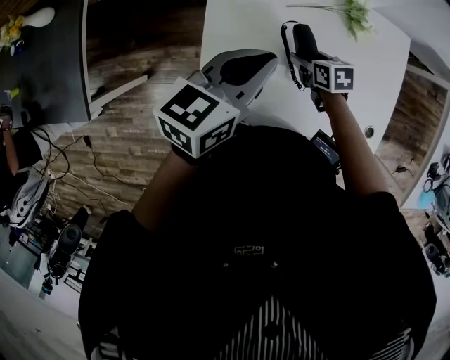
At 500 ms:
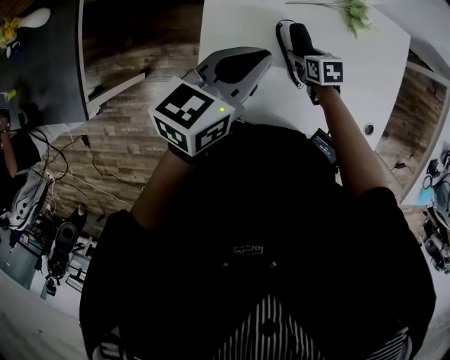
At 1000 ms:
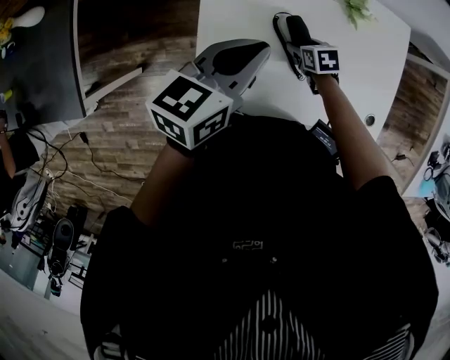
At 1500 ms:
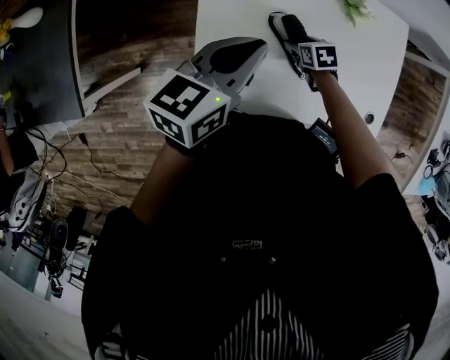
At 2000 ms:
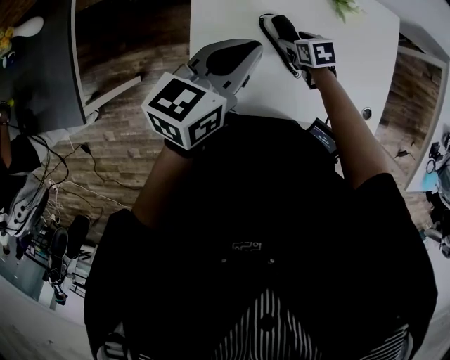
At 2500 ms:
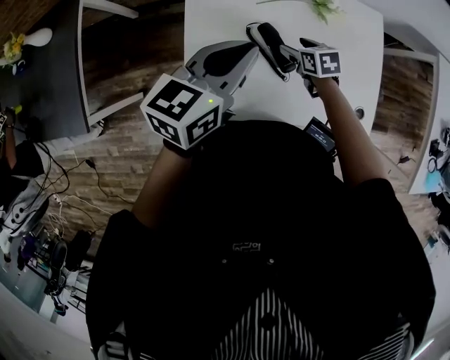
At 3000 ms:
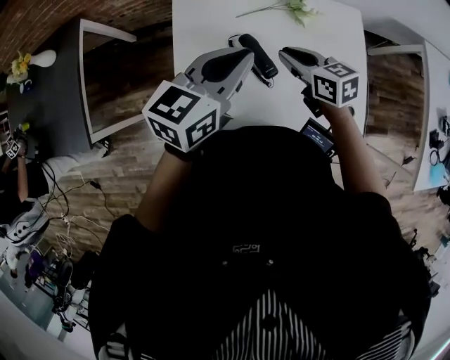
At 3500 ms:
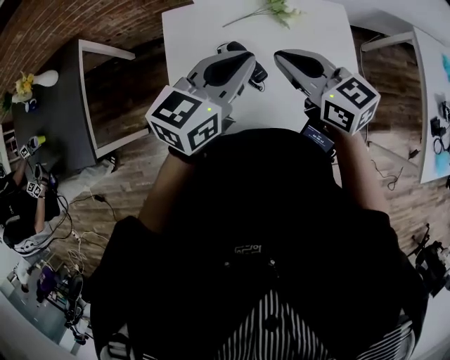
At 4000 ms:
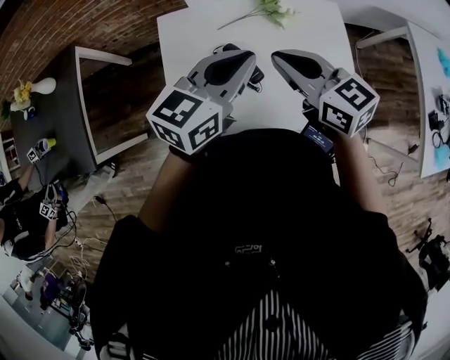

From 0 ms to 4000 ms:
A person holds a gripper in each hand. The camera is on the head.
From 2000 ms to 4000 ms: The left gripper moves to the right and upward, about 10 cm. Meanwhile the right gripper travels upward by about 30 cm, points its fingers roughly 40 degrees further upward, and closes its fingers.

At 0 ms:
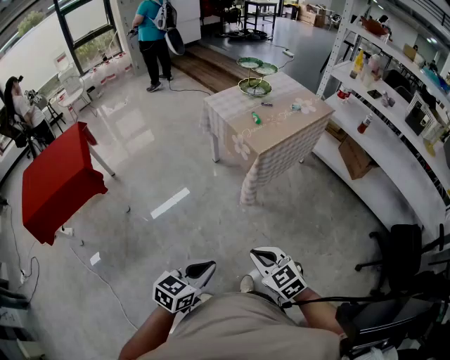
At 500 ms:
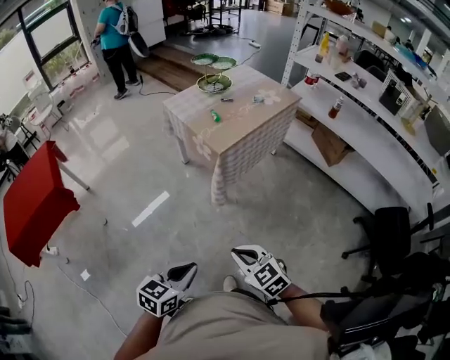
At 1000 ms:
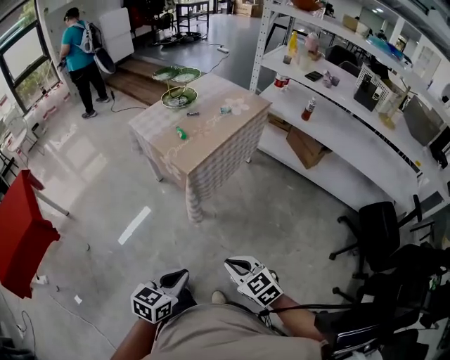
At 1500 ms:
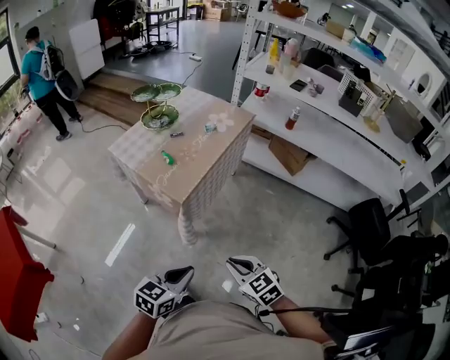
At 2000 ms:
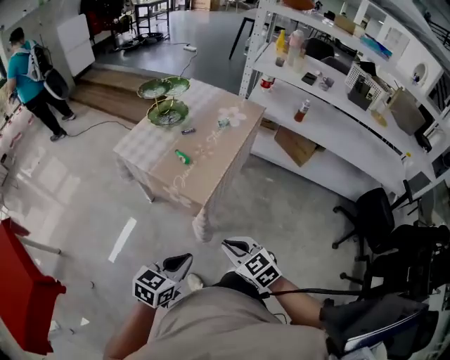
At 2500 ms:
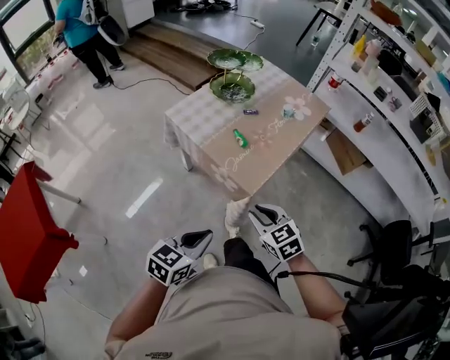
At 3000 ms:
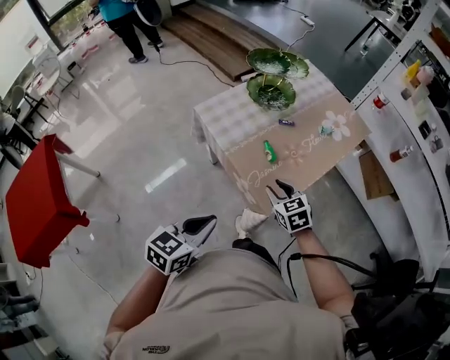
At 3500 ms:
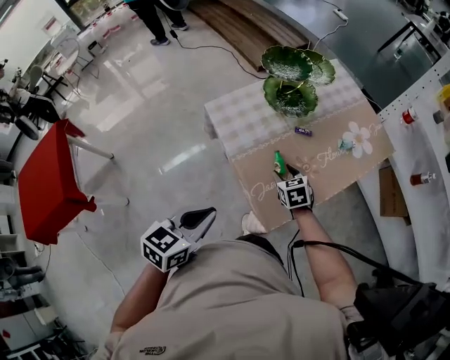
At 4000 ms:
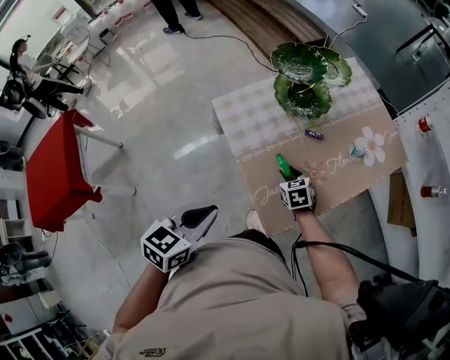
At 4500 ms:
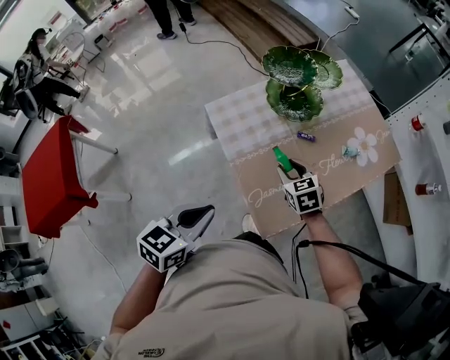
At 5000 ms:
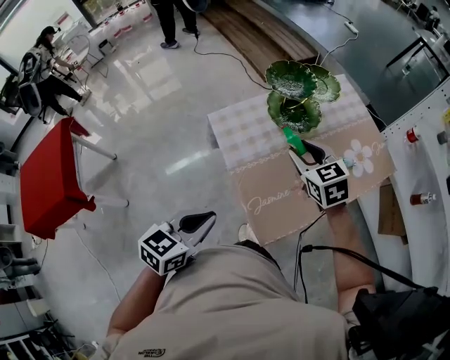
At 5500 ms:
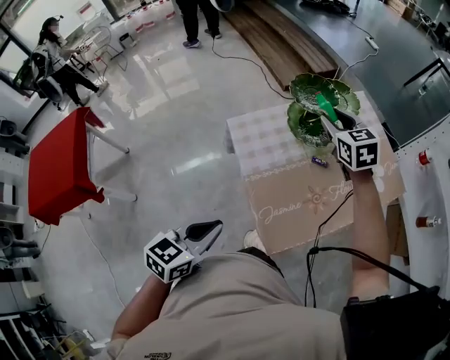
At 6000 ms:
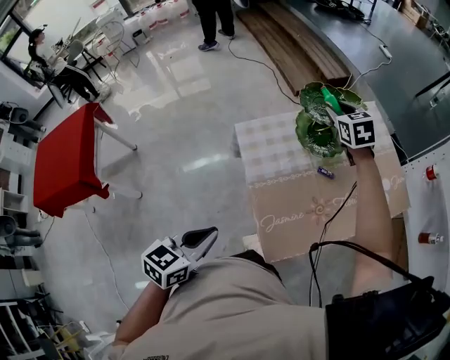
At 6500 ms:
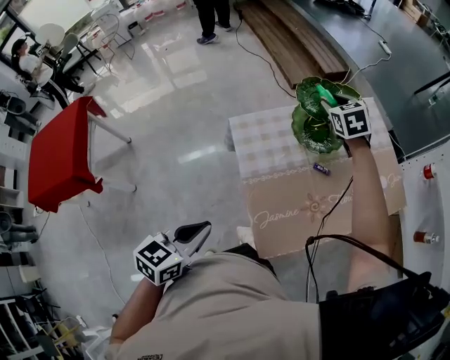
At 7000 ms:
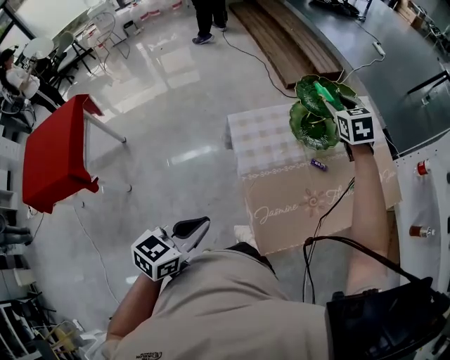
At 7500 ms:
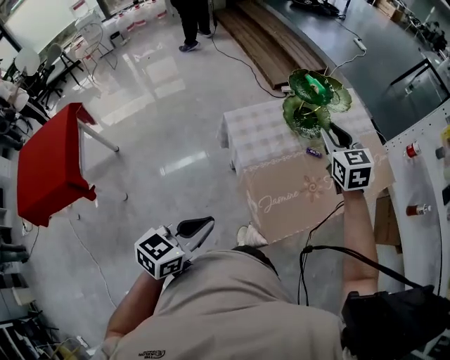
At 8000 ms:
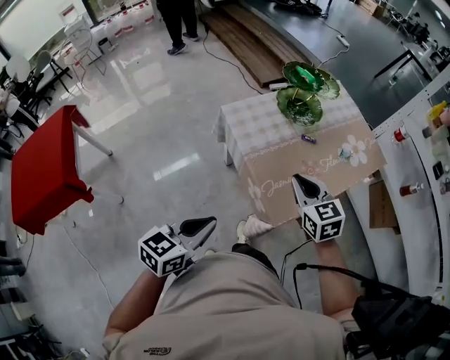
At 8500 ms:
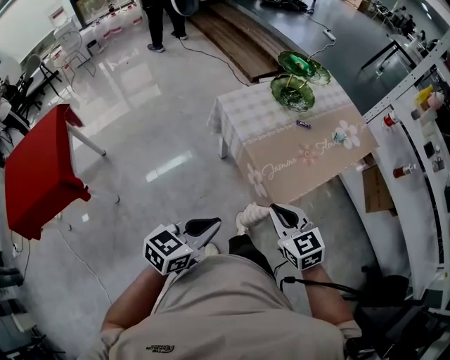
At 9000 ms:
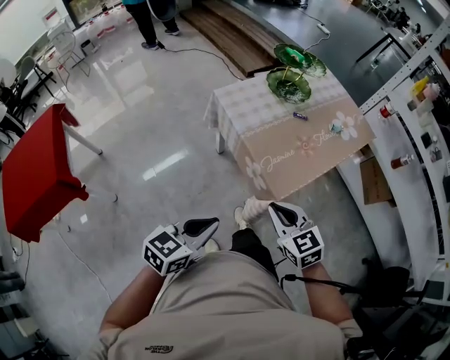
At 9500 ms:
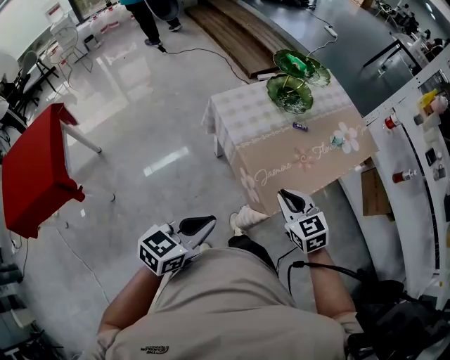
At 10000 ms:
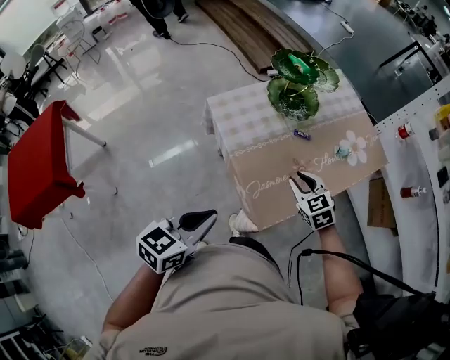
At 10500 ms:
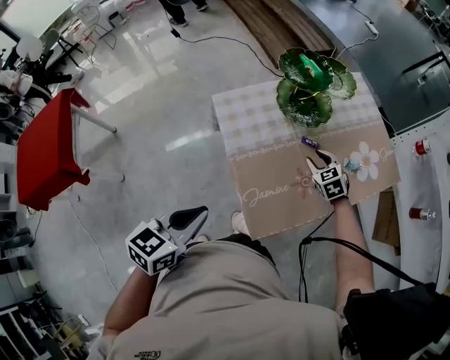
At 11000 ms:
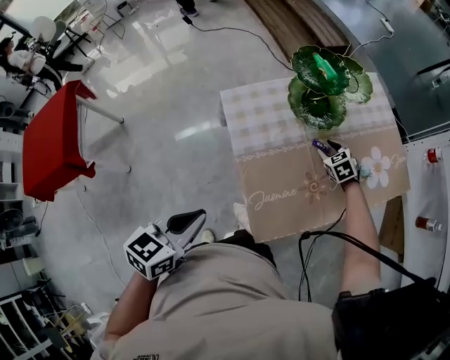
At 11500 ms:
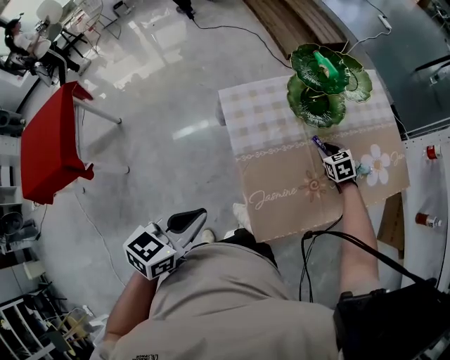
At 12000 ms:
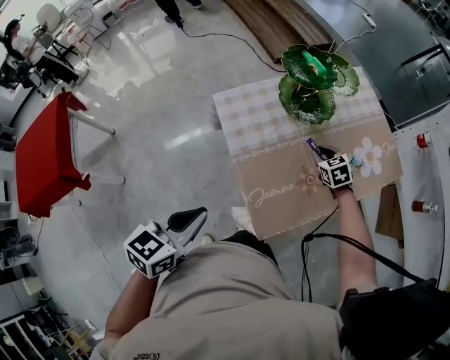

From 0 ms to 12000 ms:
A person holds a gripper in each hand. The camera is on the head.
From 0 ms to 2000 ms: The grippers both shift forward by roughly 35 cm. The right gripper rotates some 20 degrees, while the left gripper turns by roughly 20 degrees.
From 2000 ms to 4000 ms: The right gripper travels forward and downward by approximately 50 cm, and opens, while the left gripper is displaced forward by roughly 30 cm, and turns by approximately 30 degrees.
From 4000 ms to 6000 ms: The right gripper goes roughly 40 cm upward and forward, and rotates about 20 degrees.
From 6000 ms to 8000 ms: The left gripper heads backward, covering some 10 cm, while the right gripper is displaced backward by roughly 40 cm, and closes.
From 8000 ms to 10000 ms: The right gripper is displaced downward and to the right by about 15 cm, and goes backward and returns, about 20 cm each way. The left gripper travels forward and to the right by approximately 10 cm.
From 10000 ms to 12000 ms: The left gripper heads forward, covering about 5 cm. The right gripper moves forward and downward, roughly 20 cm.

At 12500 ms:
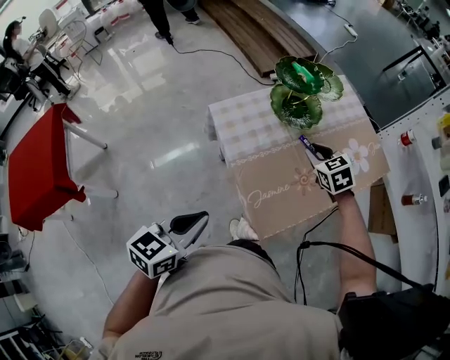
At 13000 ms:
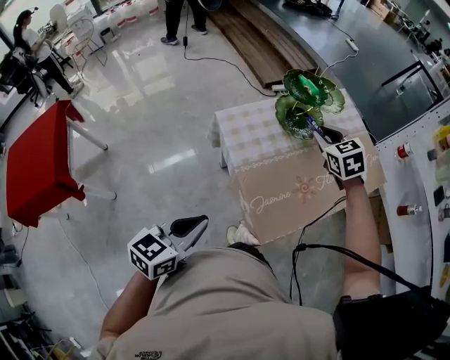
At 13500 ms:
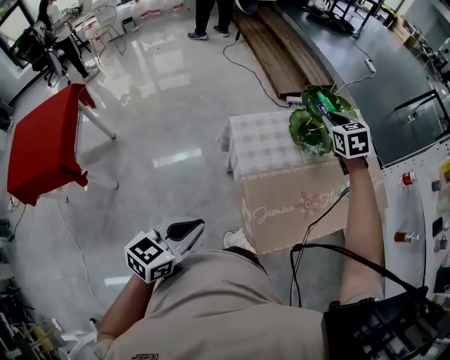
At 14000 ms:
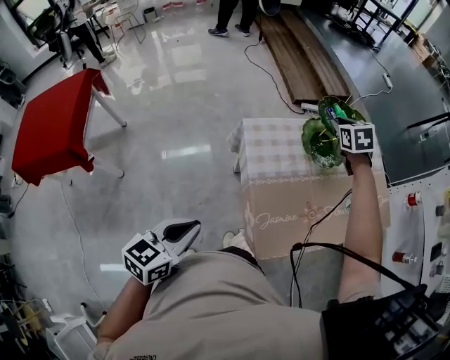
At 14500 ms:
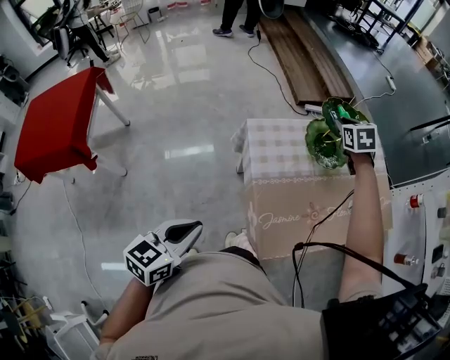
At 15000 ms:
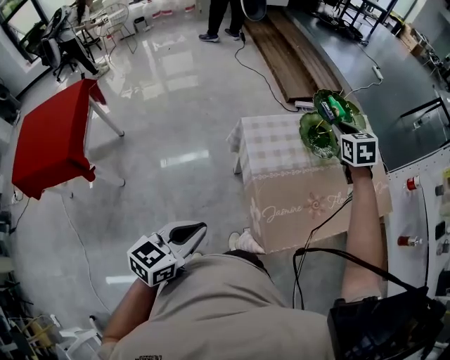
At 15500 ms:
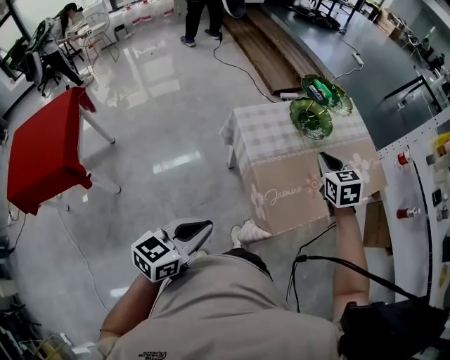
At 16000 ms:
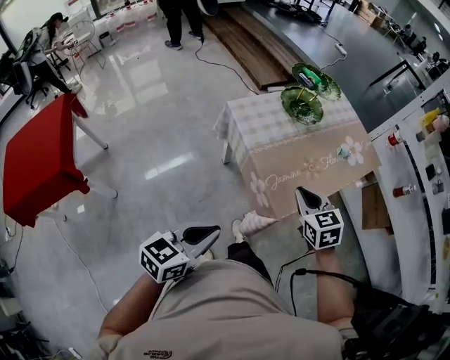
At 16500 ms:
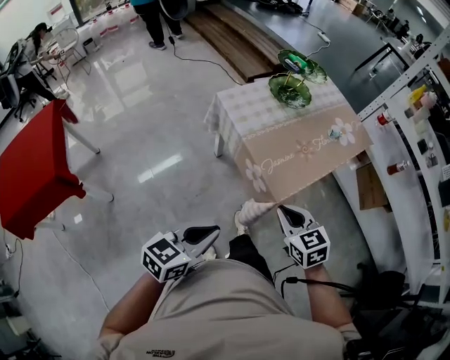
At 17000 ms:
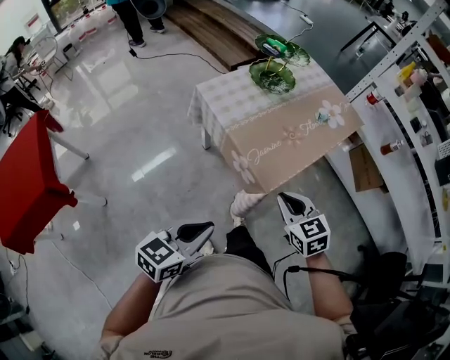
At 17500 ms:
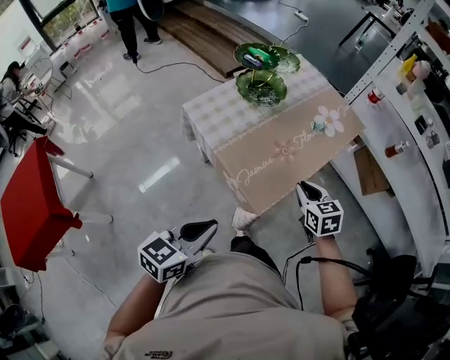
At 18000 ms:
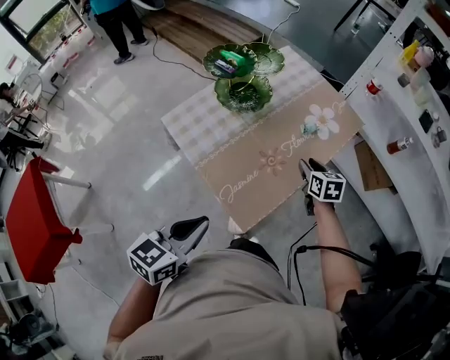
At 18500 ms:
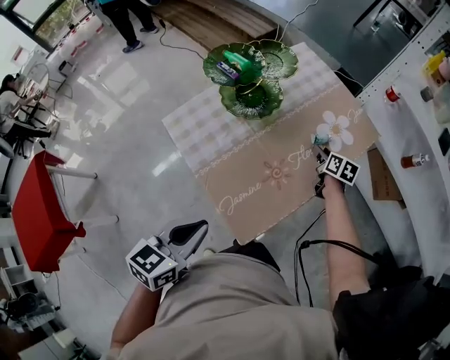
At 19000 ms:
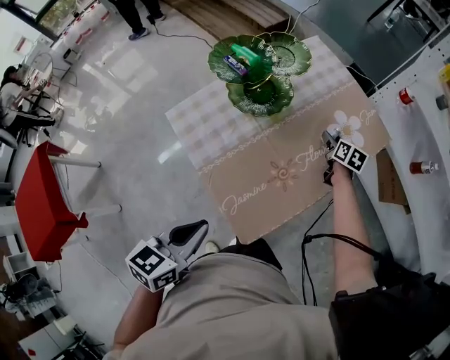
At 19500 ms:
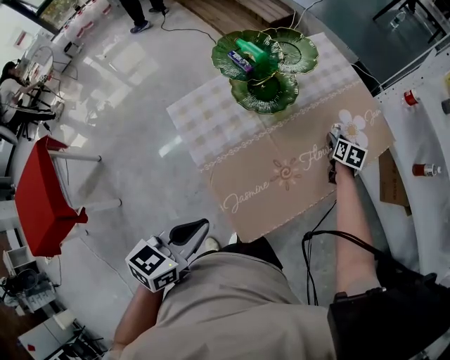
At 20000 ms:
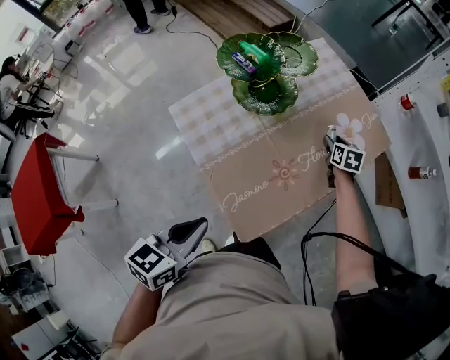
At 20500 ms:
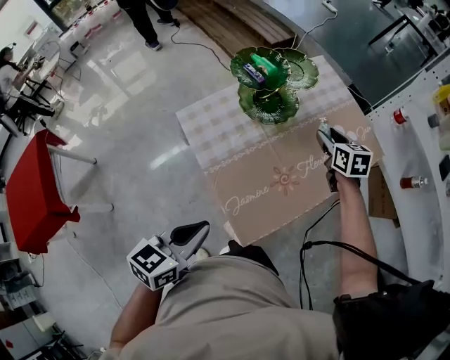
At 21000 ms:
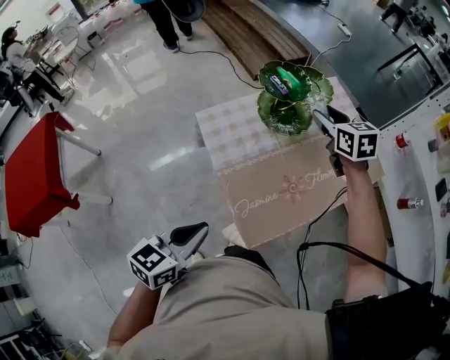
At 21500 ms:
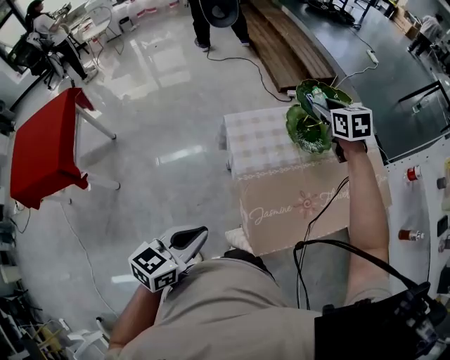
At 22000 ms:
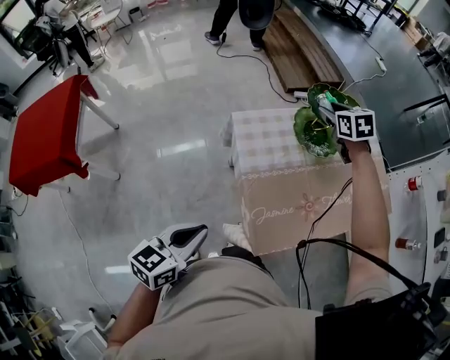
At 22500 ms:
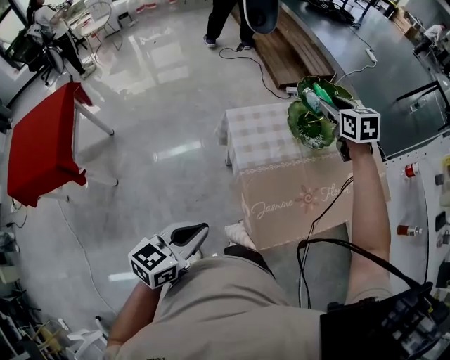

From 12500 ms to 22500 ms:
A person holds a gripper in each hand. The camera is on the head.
From 12500 ms to 14500 ms: The left gripper moves to the left, some 5 cm. Meanwhile the right gripper shifts some 25 cm forward, upward and to the left.
From 14500 ms to 16500 ms: The left gripper moves backward, roughly 15 cm, and changes its angle by roughly 30 degrees; the right gripper goes some 60 cm backward.
From 16500 ms to 18500 ms: The right gripper is displaced forward and to the right by roughly 60 cm, rotates around the line of its fingers by some 50 degrees, clockwise from behind, and opens its fingers. The left gripper travels forward by approximately 30 cm.
From 18500 ms to 20500 ms: The right gripper shifts about 15 cm upward and to the left, and turns by about 30 degrees.
From 20500 ms to 22500 ms: The right gripper goes roughly 25 cm to the left and upward, and rotates approximately 30 degrees. The left gripper is displaced to the left and backward by about 10 cm.
